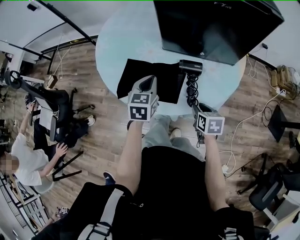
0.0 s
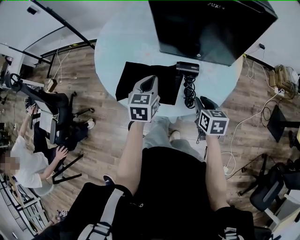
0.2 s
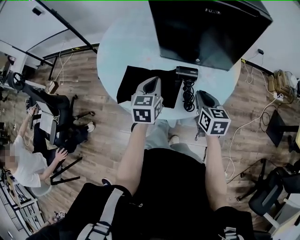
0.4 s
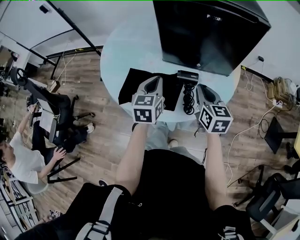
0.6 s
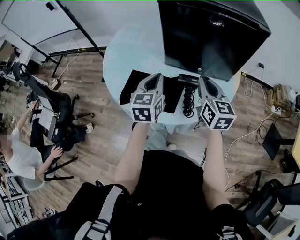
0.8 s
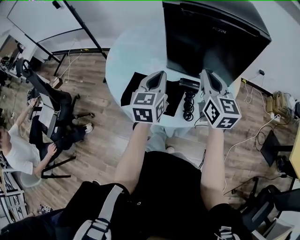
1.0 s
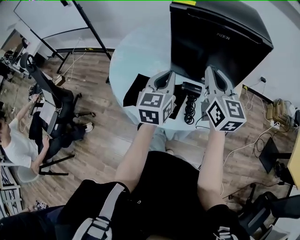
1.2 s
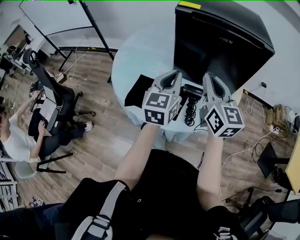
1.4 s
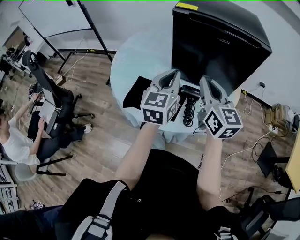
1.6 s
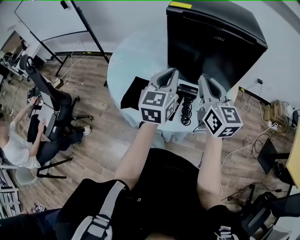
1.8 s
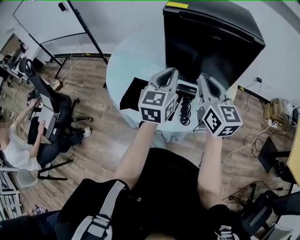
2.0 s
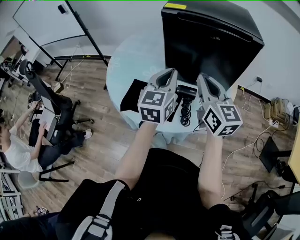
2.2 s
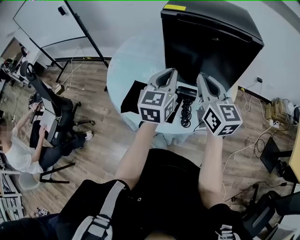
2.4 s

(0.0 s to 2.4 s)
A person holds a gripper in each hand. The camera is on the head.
0.0 s - 1.2 s: The right gripper travels upward by some 35 cm, tilts its fingers some 50 degrees upward, and closes its fingers, while the left gripper moves upward, roughly 15 cm, and turns by some 20 degrees.
1.2 s - 2.4 s: The grippers make only small movements.

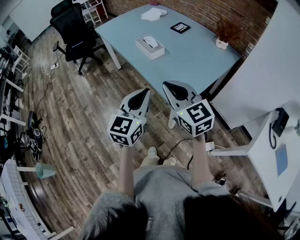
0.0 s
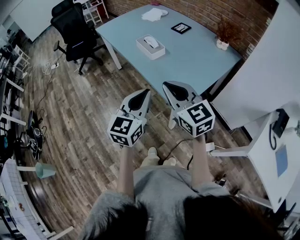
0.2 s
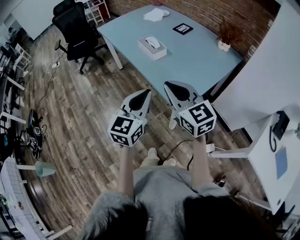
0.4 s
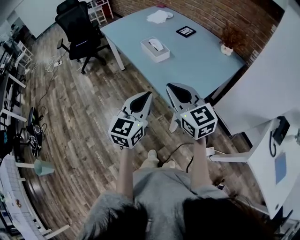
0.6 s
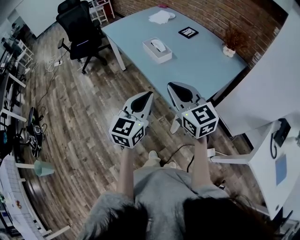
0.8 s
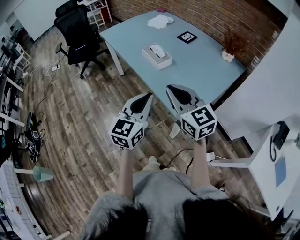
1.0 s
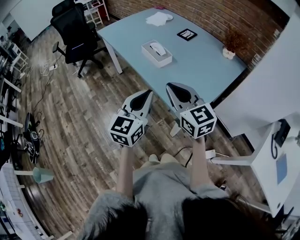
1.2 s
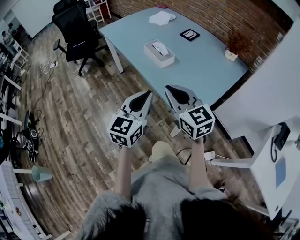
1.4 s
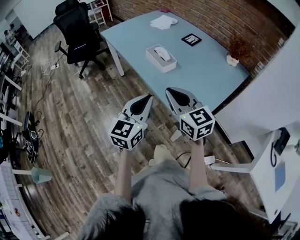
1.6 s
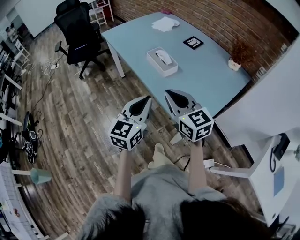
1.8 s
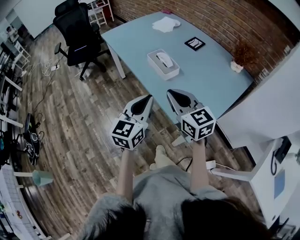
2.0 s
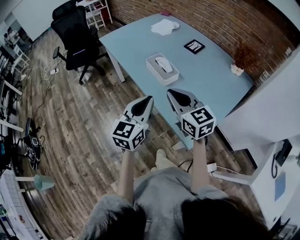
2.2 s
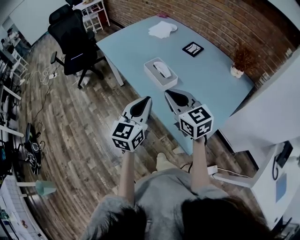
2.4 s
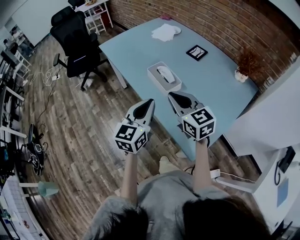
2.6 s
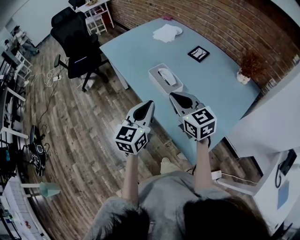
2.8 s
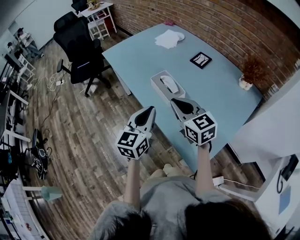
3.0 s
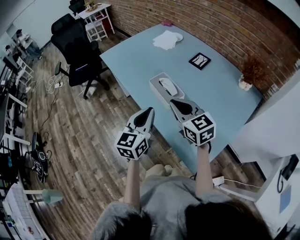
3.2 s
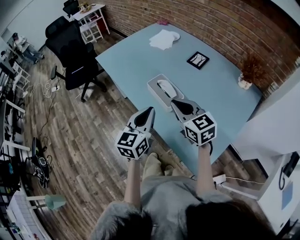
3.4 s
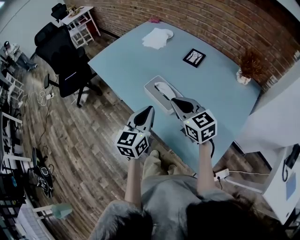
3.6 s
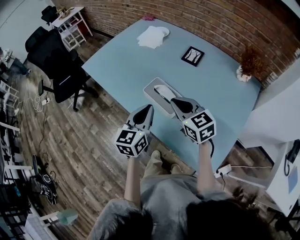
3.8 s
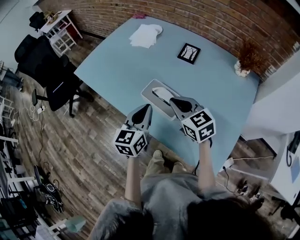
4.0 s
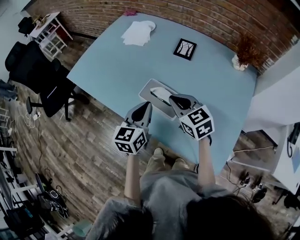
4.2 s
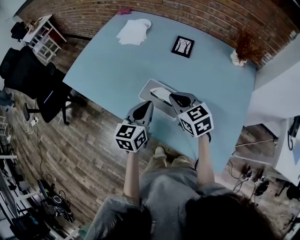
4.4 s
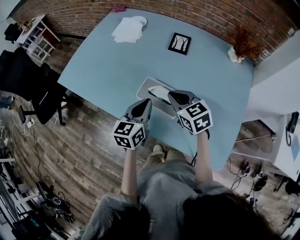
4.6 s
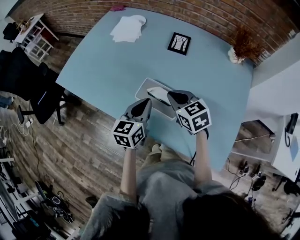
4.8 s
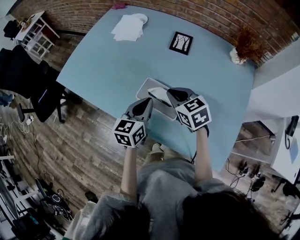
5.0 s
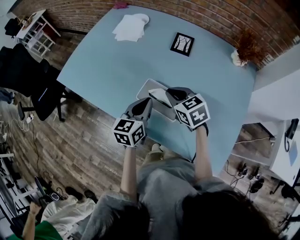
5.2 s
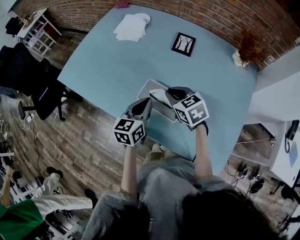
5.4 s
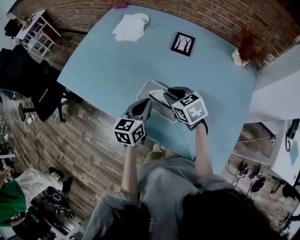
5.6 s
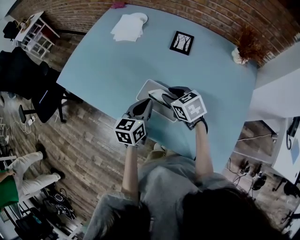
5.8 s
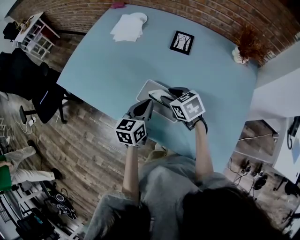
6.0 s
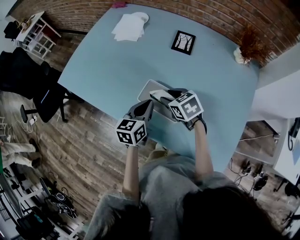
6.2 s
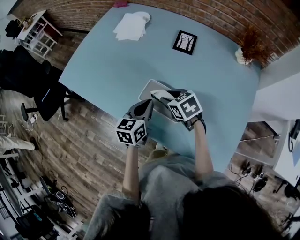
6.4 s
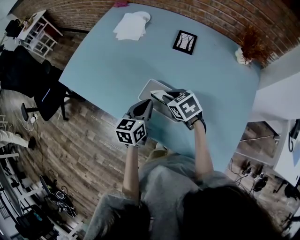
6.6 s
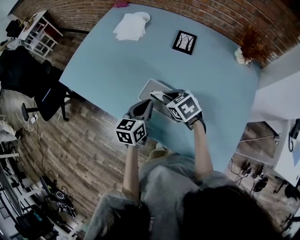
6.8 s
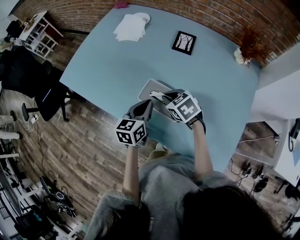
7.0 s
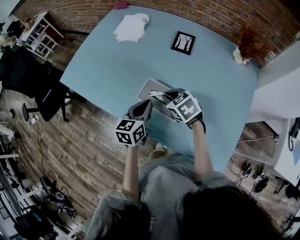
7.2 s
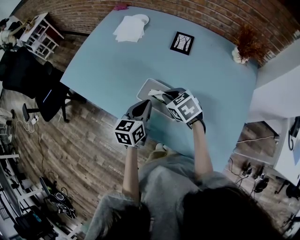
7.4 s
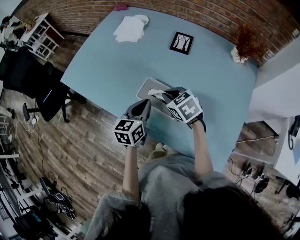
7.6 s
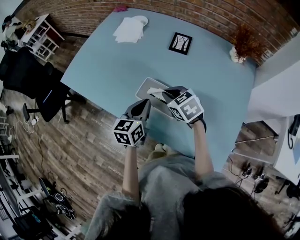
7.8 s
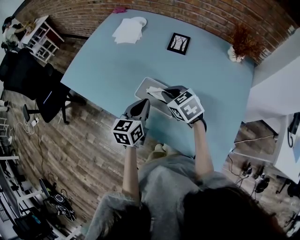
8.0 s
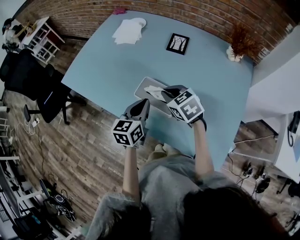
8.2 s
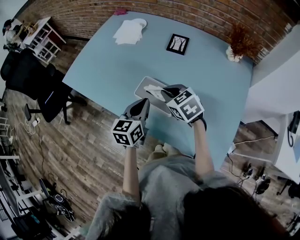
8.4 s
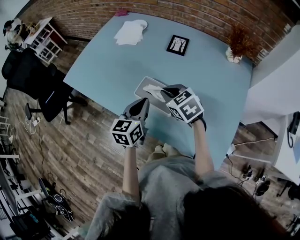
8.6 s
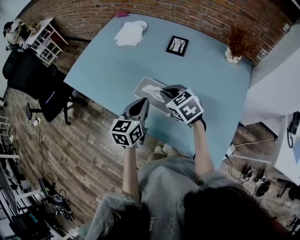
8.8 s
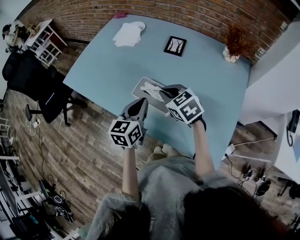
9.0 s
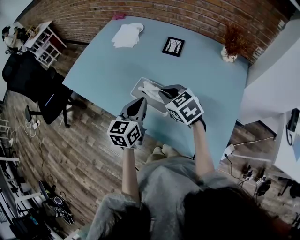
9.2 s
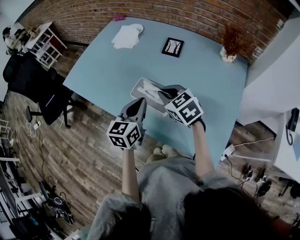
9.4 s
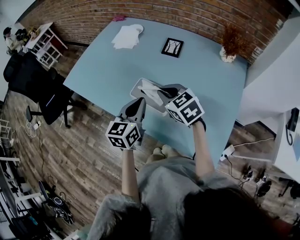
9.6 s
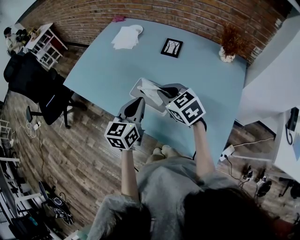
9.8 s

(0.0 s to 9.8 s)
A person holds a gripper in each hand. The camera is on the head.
0.0 s - 1.4 s: Both grippers travel together forward, roughly 5 cm.
1.4 s - 2.8 s: Both grippers move forward, some 20 cm.
2.8 s - 4.2 s: The left gripper travels forward by some 20 cm, and changes its angle by some 20 degrees; the right gripper moves forward and downward, approximately 20 cm, and changes its angle by roughly 20 degrees.
4.2 s - 5.6 s: Both grippers move downward and forward, approximately 10 cm.
5.6 s - 7.0 s: The right gripper opens, then closes again.
7.0 s - 8.4 s: The left gripper shifts by some 5 cm. The right gripper is displaced upward by roughly 5 cm.
8.4 s - 9.8 s: The grippers both shift upward by roughly 5 cm.

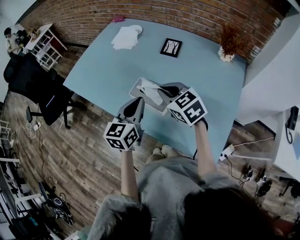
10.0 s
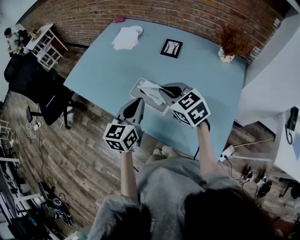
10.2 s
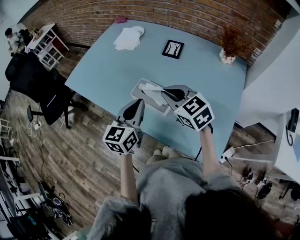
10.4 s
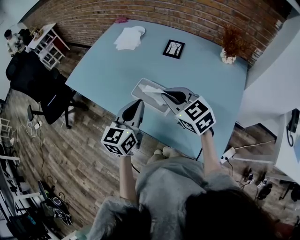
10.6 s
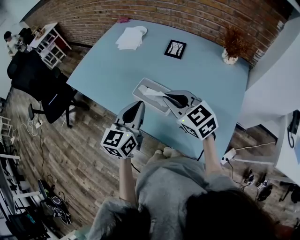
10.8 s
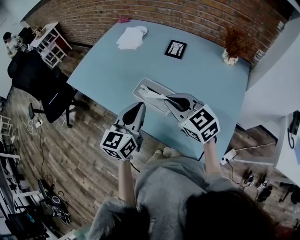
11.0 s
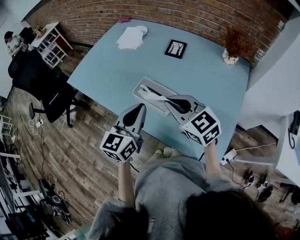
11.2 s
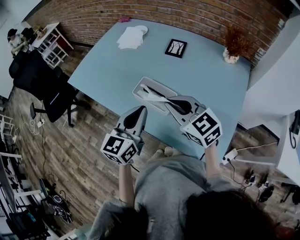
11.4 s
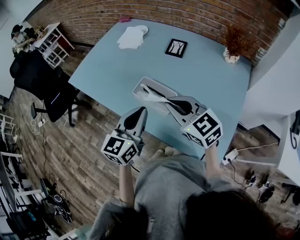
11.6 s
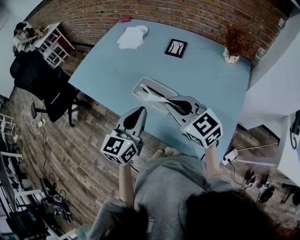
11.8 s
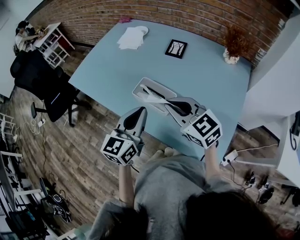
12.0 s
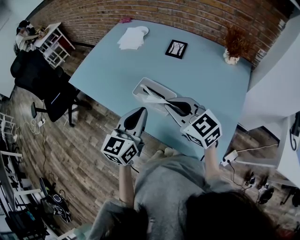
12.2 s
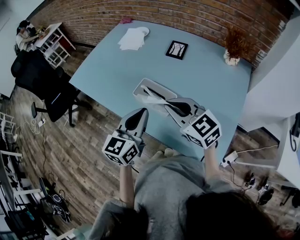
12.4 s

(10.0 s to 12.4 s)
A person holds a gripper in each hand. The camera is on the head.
10.0 s - 11.2 s: The right gripper shifts some 5 cm backward.
11.2 s - 12.4 s: The grippers move only a little.

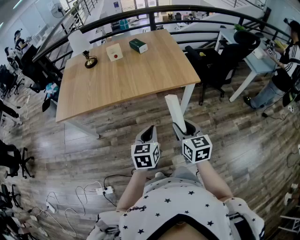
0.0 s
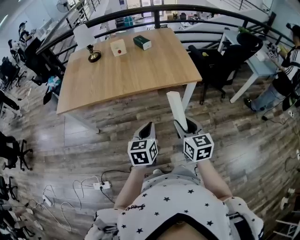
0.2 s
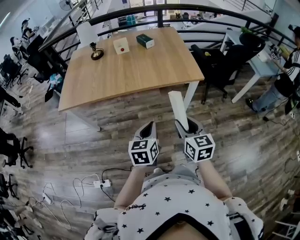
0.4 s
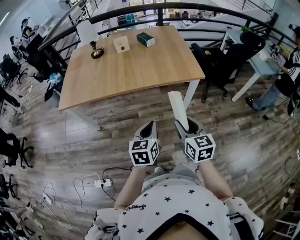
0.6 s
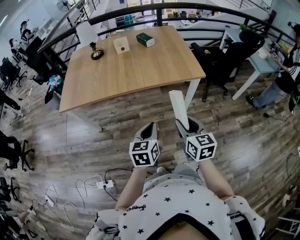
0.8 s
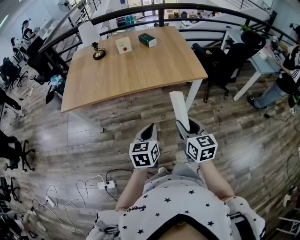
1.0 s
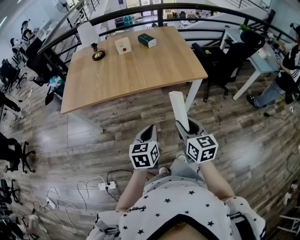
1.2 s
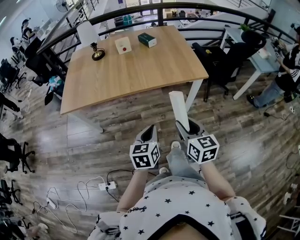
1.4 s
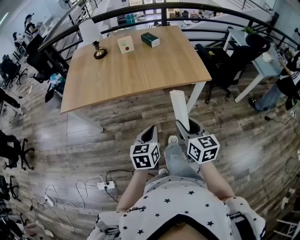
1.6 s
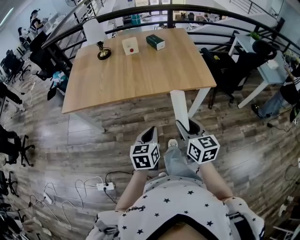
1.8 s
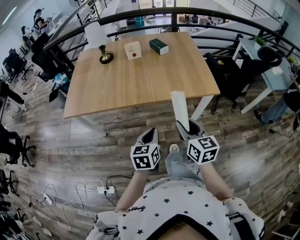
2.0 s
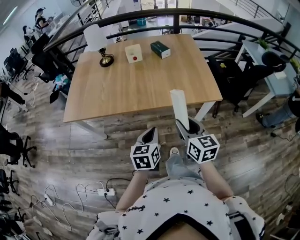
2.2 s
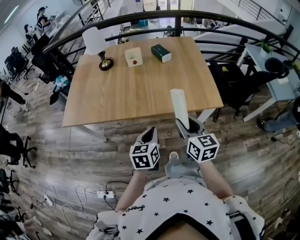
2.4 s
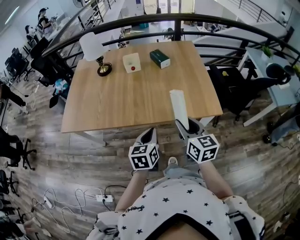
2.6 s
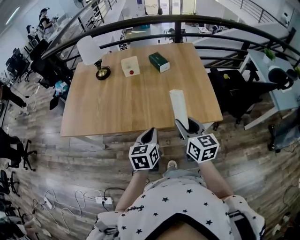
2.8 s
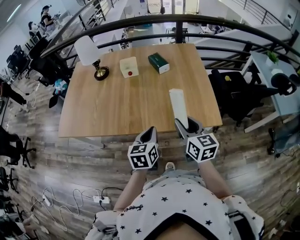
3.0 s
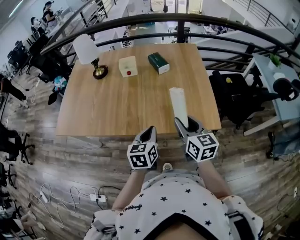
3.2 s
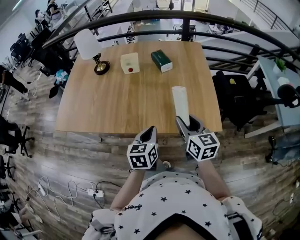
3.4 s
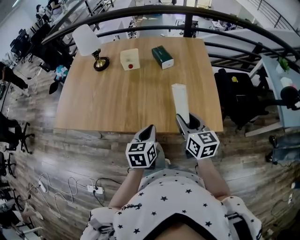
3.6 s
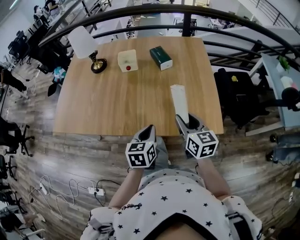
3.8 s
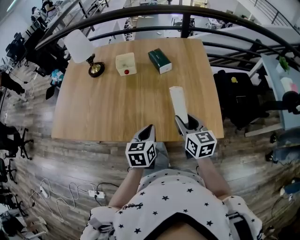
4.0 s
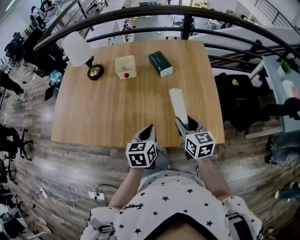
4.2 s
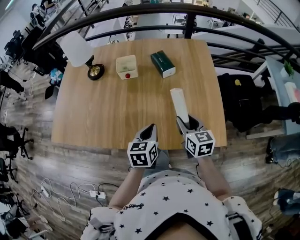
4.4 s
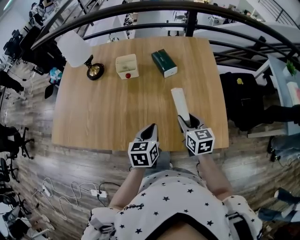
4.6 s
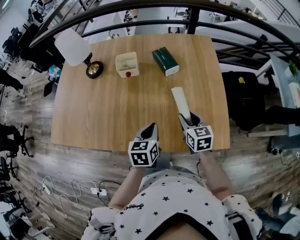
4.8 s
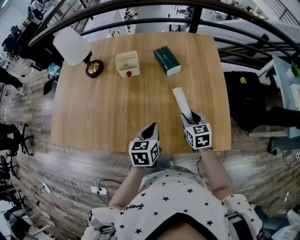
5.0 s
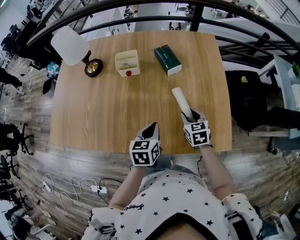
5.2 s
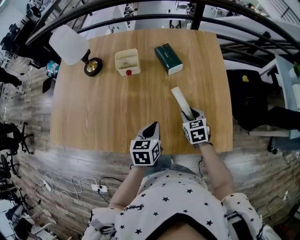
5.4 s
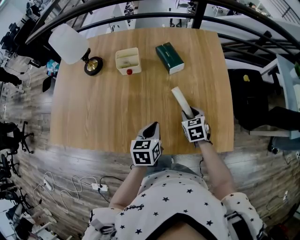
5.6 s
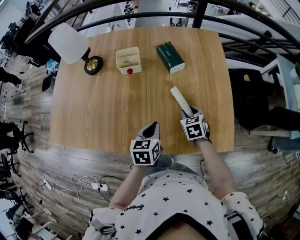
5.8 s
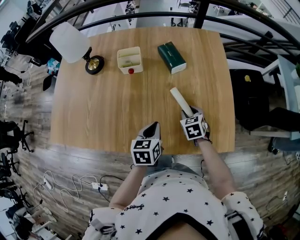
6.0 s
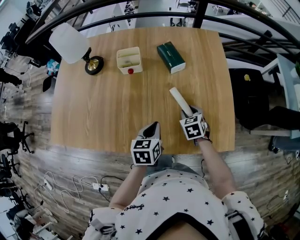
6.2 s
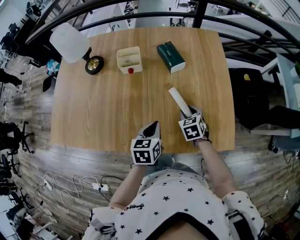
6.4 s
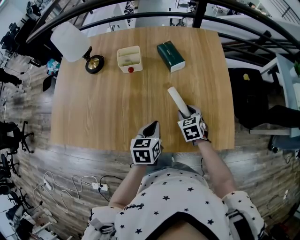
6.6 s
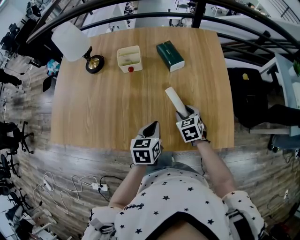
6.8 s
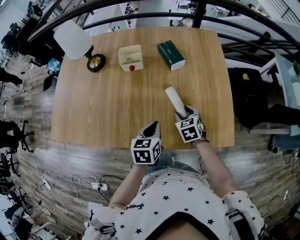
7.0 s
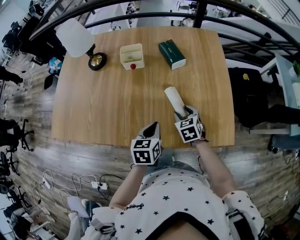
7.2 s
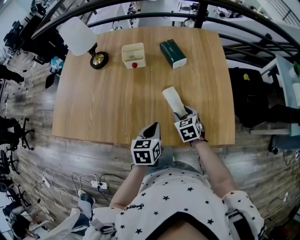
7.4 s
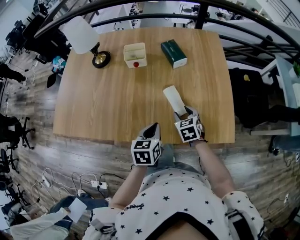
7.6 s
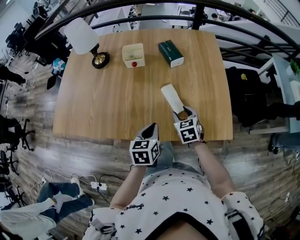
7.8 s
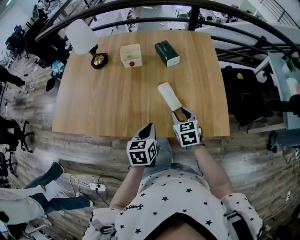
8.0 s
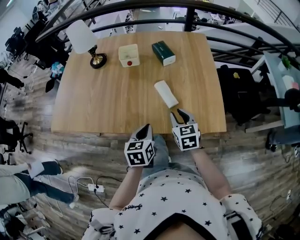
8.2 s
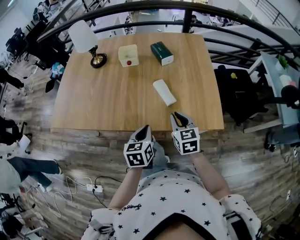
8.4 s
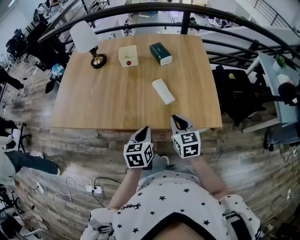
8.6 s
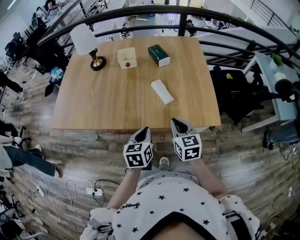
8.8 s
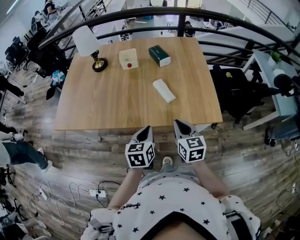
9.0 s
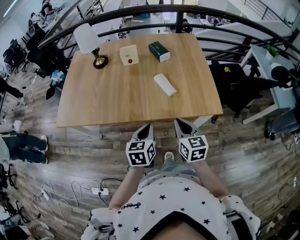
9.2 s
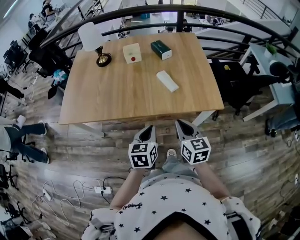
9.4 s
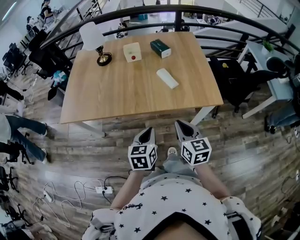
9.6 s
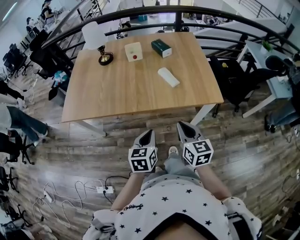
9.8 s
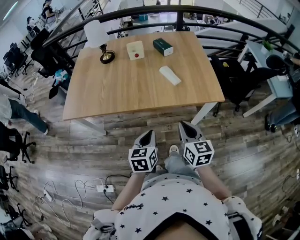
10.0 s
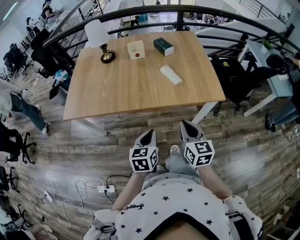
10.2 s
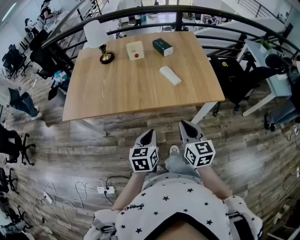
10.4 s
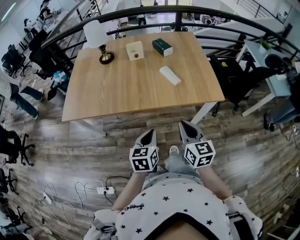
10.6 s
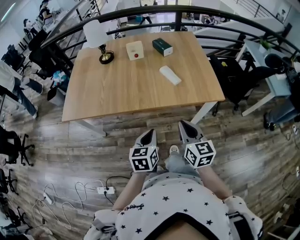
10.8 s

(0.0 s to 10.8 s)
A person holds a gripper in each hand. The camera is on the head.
0.0 s - 1.6 s: Both grippers move to the left, some 5 cm.
1.6 s - 3.0 s: Both grippers move forward, approximately 30 cm.
3.0 s - 4.6 s: The right gripper moves forward and downward, some 20 cm. The left gripper heads forward, covering some 15 cm.
4.6 s - 6.2 s: The right gripper heads downward and forward, covering approximately 15 cm, and swivels some 30 degrees. The left gripper moves about 5 cm.
6.2 s - 7.8 s: Both grippers travel together backward, about 10 cm.
7.8 s - 9.2 s: The left gripper moves backward, about 15 cm; the right gripper heads backward and upward, covering approximately 25 cm, turns by approximately 30 degrees, and closes.
9.2 s - 10.8 s: Both grippers move backward and to the left, roughly 15 cm.
